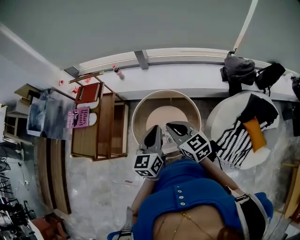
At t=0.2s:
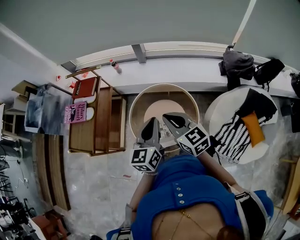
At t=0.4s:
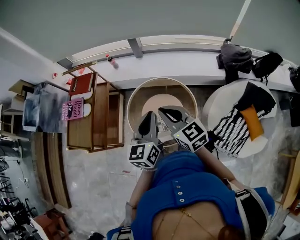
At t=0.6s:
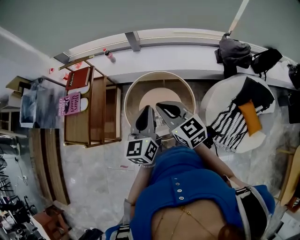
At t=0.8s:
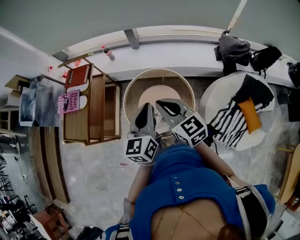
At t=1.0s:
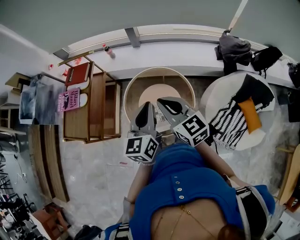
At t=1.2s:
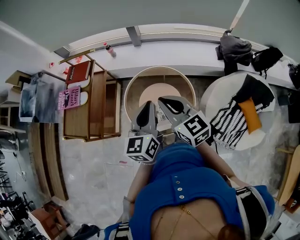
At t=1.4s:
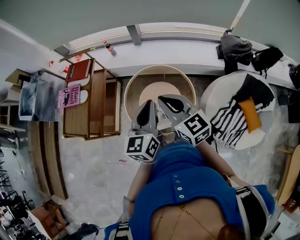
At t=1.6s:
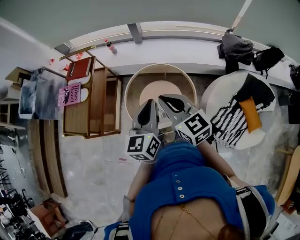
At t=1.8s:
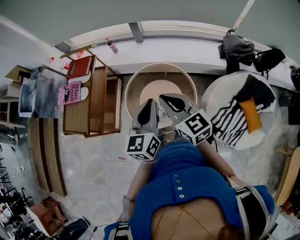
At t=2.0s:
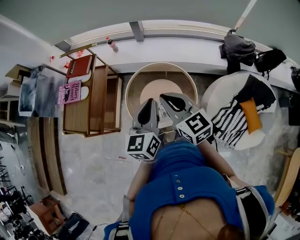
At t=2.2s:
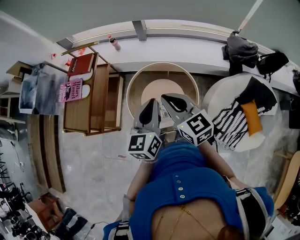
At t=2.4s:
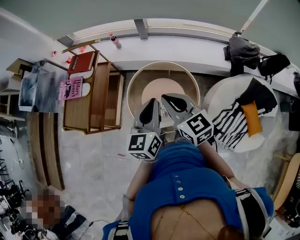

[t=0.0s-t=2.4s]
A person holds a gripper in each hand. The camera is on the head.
t=0.0s to t=2.4s: The grippers stay close to where they were, moving slightly.

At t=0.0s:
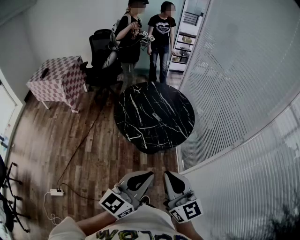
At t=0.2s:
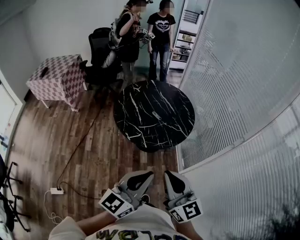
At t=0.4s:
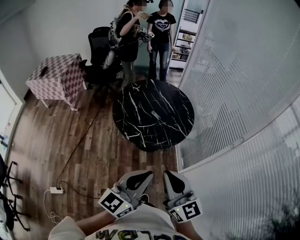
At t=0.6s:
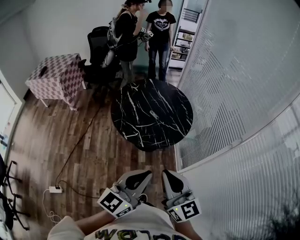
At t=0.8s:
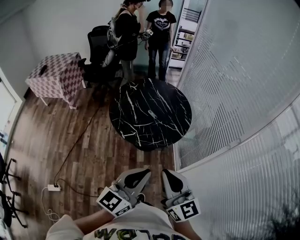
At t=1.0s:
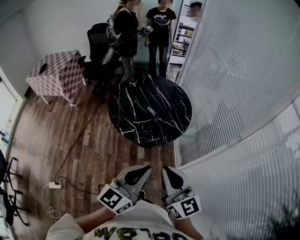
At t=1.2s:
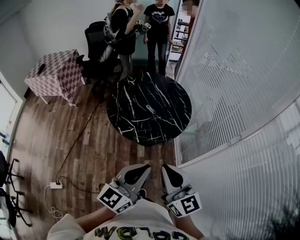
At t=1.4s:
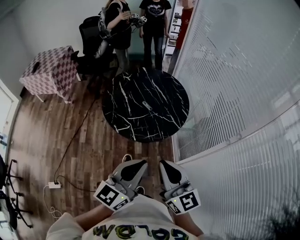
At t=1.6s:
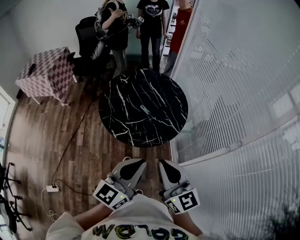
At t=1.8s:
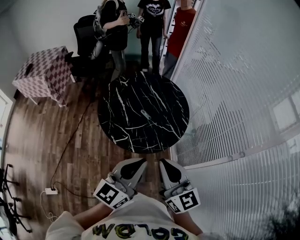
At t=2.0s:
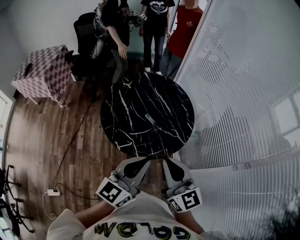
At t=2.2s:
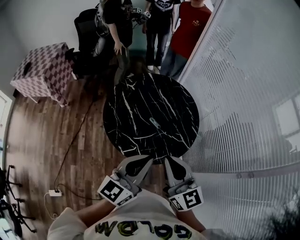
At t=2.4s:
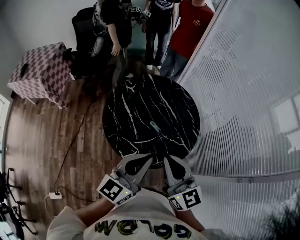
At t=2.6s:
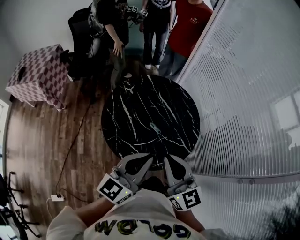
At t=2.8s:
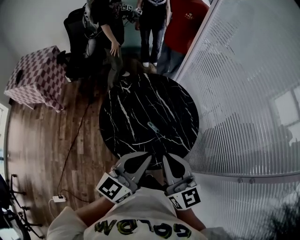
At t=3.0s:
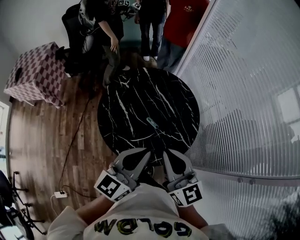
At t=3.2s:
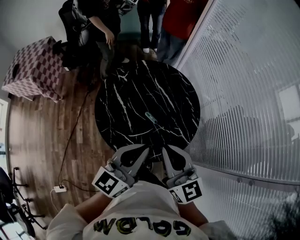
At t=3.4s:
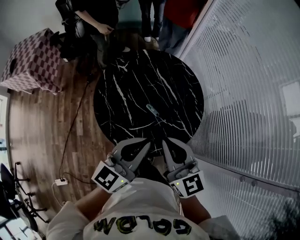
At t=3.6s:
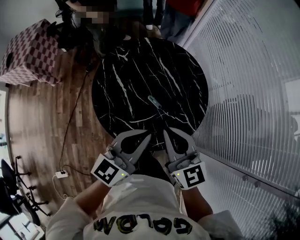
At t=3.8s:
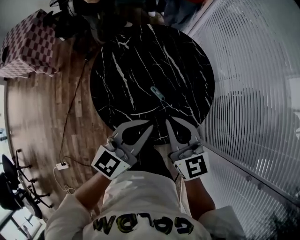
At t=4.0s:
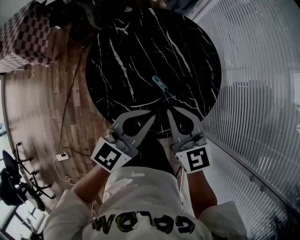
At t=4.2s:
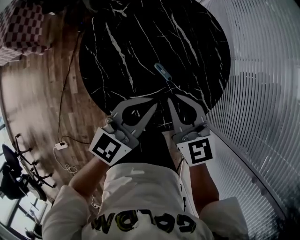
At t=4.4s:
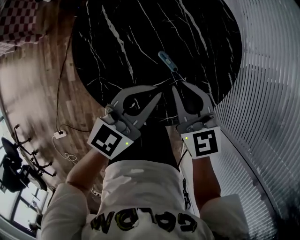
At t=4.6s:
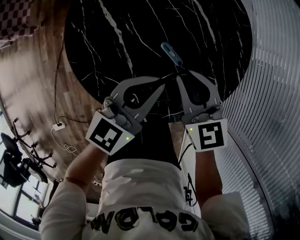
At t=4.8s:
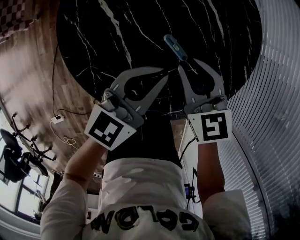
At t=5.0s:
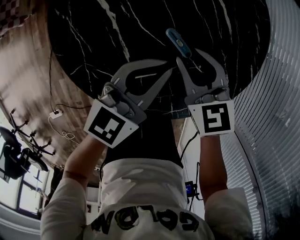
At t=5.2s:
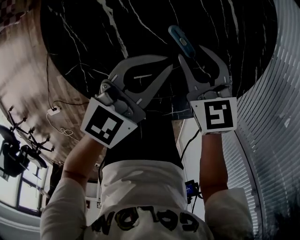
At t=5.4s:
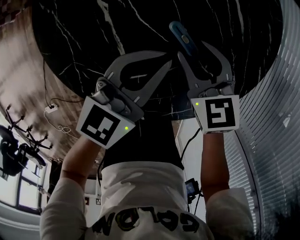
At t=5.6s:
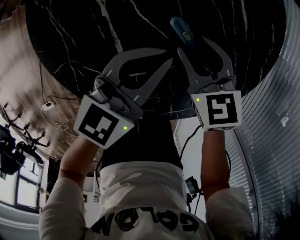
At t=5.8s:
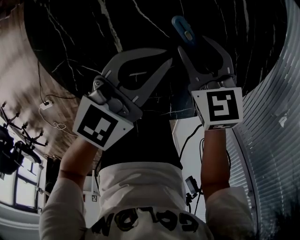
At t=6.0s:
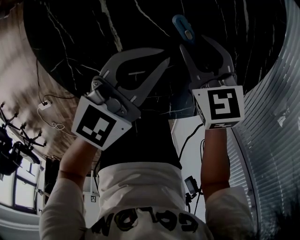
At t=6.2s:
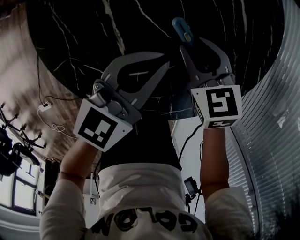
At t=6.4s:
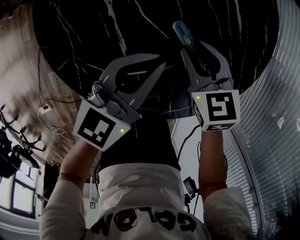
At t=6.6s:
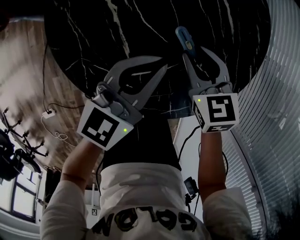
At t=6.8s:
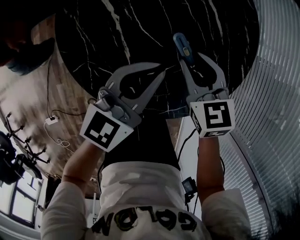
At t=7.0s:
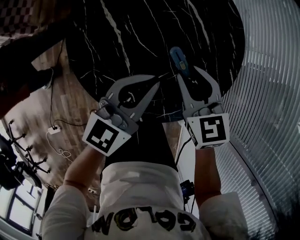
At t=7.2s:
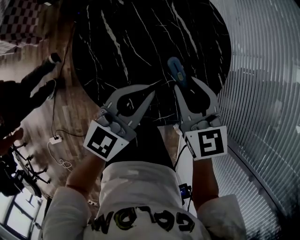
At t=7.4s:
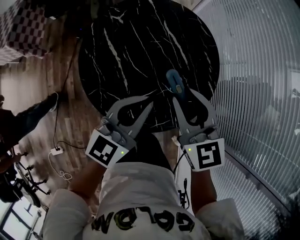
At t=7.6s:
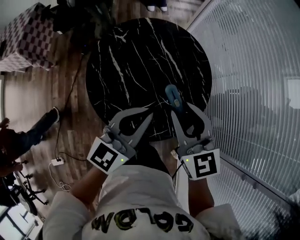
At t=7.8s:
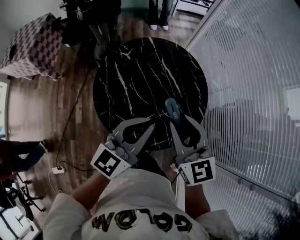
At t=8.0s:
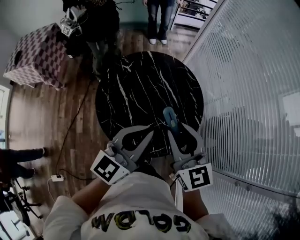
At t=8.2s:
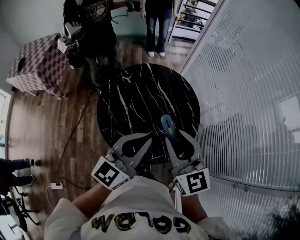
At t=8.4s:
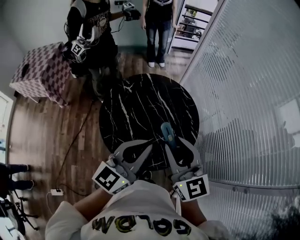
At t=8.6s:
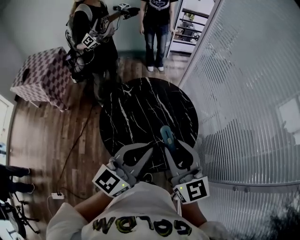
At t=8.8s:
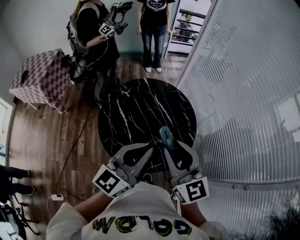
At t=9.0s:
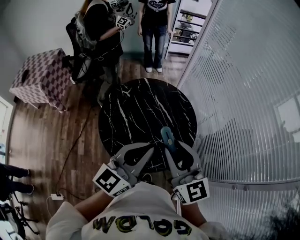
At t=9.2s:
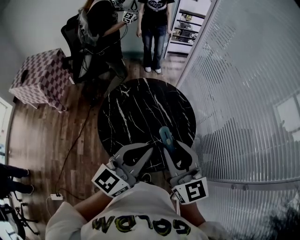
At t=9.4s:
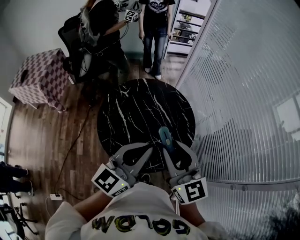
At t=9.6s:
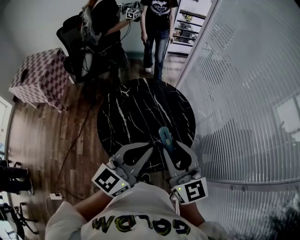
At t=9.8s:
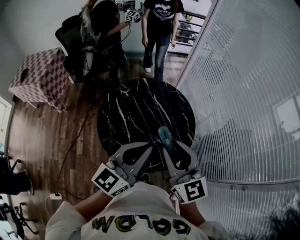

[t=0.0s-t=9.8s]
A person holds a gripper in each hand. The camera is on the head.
t=0.0s to t=1.4s: The two grippers go some 10 cm forward and to the right.
t=1.4s to t=2.8s: Both grippers move forward, about 30 cm.
t=2.8s to t=4.2s: Both grippers move downward and forward, approximately 25 cm. The right gripper turns by some 30 degrees.
t=4.2s to t=5.6s: Both grippers travel together downward, some 20 cm. The right gripper swivels roughly 20 degrees, and opens.
t=5.6s to t=7.0s: The two grippers go about 15 cm upward.
t=7.0s to t=8.4s: The right gripper heads upward, covering roughly 35 cm, and tips its fingers upward by about 30 degrees, while the left gripper heads upward and backward, covering roughly 30 cm.
t=8.4s to t=9.8s: The grippers move only a little.

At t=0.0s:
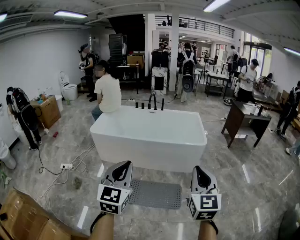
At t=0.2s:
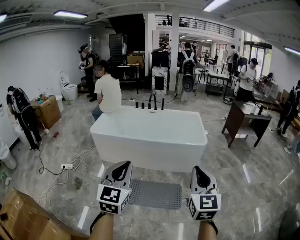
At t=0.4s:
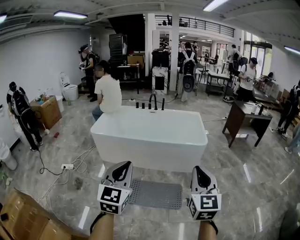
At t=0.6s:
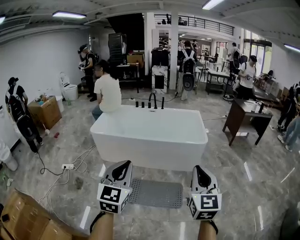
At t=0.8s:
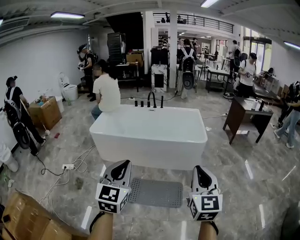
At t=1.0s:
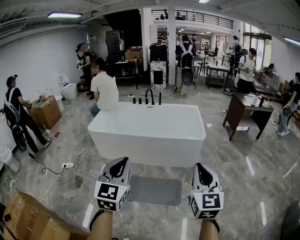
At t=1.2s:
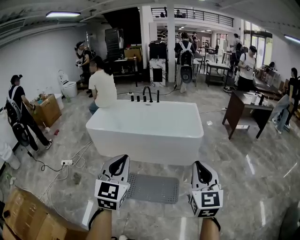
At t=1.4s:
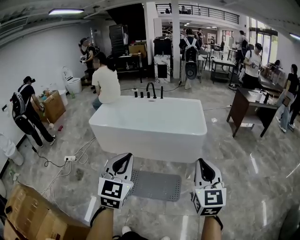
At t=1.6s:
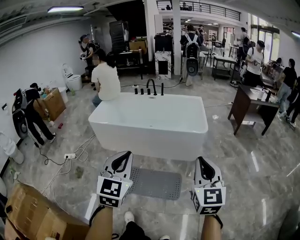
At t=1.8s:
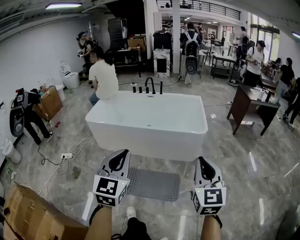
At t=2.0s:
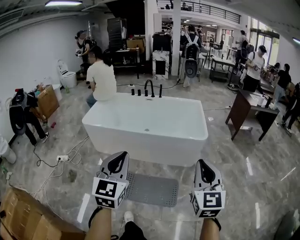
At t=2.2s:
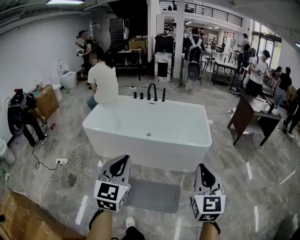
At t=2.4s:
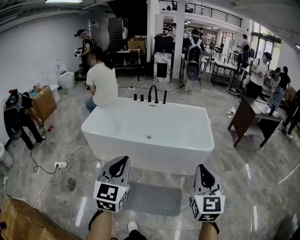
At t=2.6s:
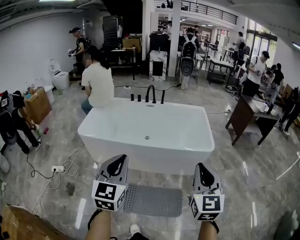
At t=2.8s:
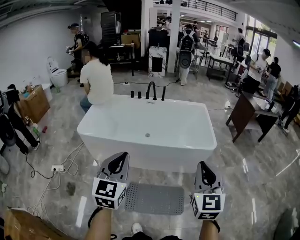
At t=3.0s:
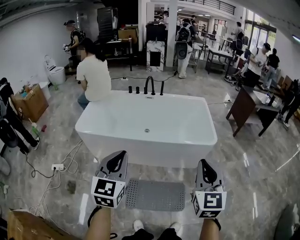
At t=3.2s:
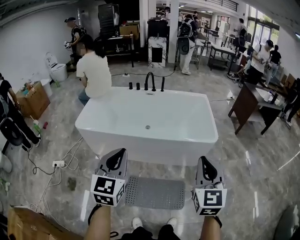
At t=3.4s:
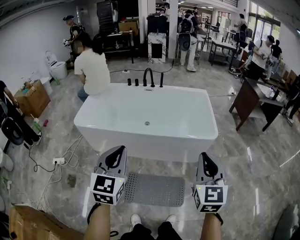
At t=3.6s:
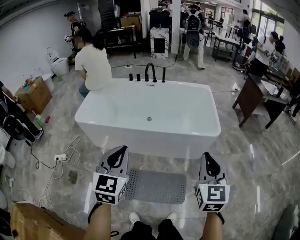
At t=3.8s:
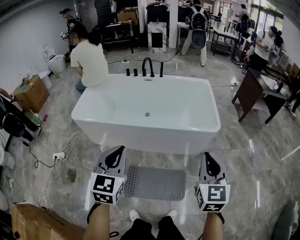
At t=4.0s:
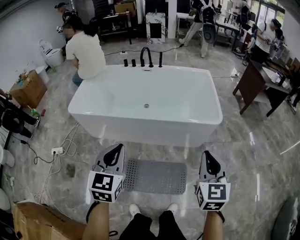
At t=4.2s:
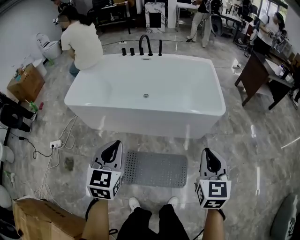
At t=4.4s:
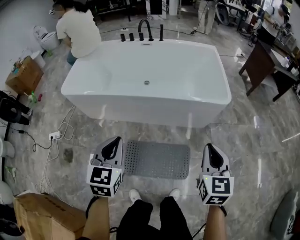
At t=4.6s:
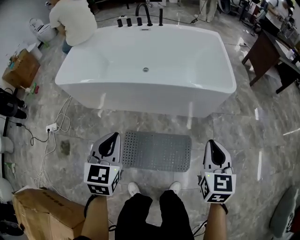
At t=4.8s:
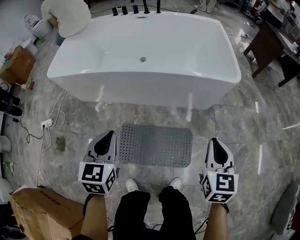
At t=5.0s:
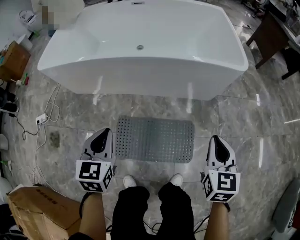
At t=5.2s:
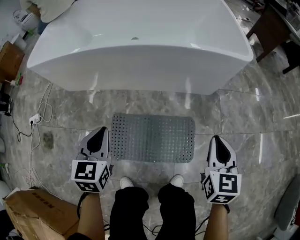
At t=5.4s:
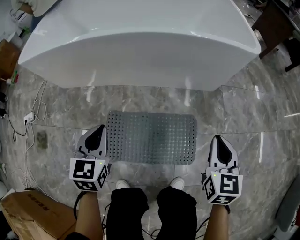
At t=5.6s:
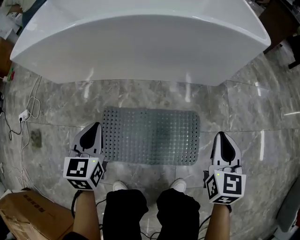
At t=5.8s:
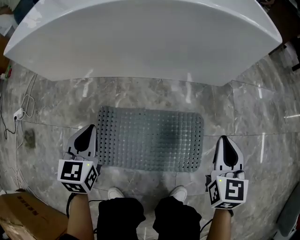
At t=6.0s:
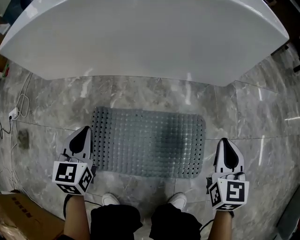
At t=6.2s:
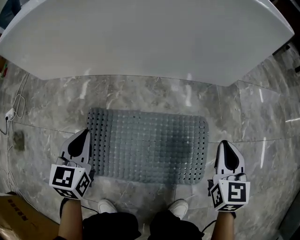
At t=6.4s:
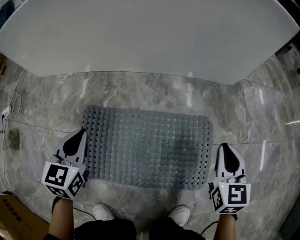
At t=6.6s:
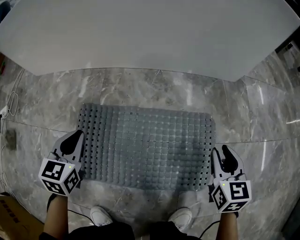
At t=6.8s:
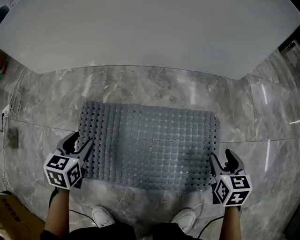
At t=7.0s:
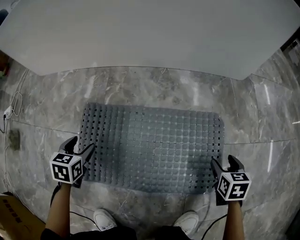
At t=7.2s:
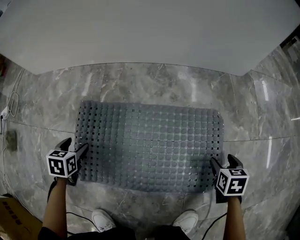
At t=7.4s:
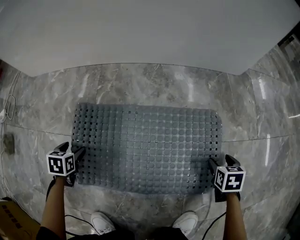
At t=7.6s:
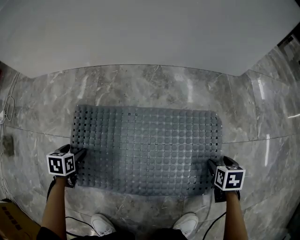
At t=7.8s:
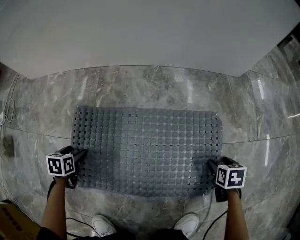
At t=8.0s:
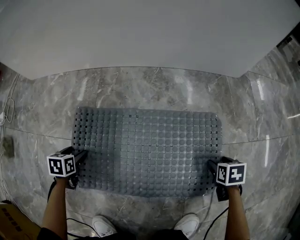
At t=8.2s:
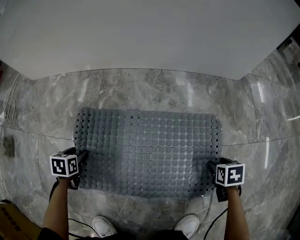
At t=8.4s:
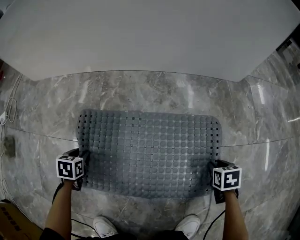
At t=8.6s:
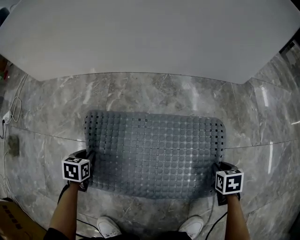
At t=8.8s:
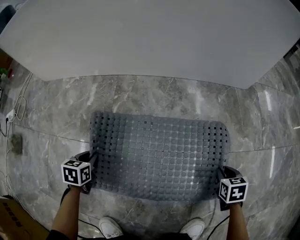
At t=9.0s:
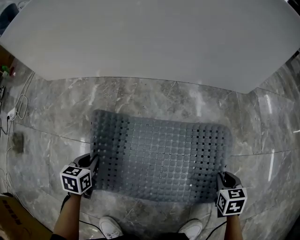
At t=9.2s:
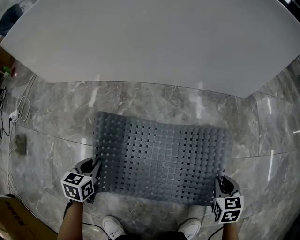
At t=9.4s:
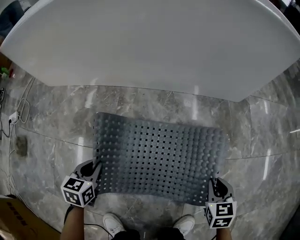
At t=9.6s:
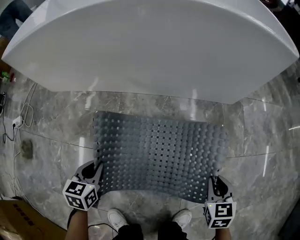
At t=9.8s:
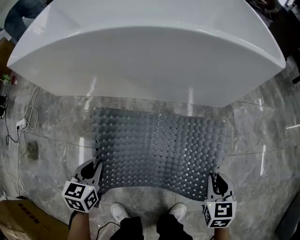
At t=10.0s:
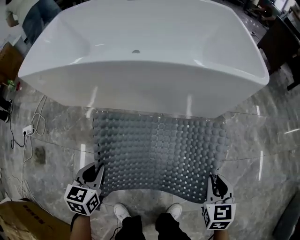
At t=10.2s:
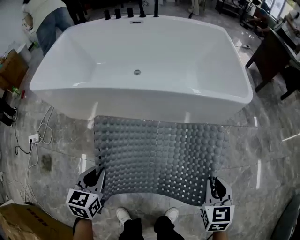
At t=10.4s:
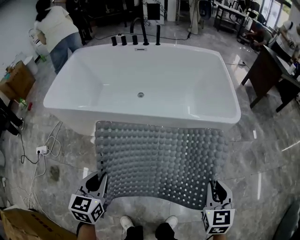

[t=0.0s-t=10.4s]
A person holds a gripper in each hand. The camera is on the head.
t=0.0s to t=1.4s: Both grippers move to the right, approximately 15 cm.
t=1.4s to t=3.0s: The grippers both shift forward and to the left by some 35 cm.
t=3.0s to t=4.4s: Both grippers travel together downward, roughly 20 cm.
t=4.4s to t=6.0s: Both grippers move downward, some 50 cm.
t=6.0s to t=7.4s: Both grippers move downward, some 35 cm. The left gripper tips its fingers downward by roughly 40 degrees, and opens. Meanwhile the right gripper points its fingers about 40 degrees further downward, and opens its fingers.
t=7.4s to t=9.0s: The grippers both shift upward by approximately 5 cm. The right gripper closes up. Meanwhile the left gripper closes up.
t=9.0s to t=10.4s: Both grippers move upward, approximately 60 cm. The left gripper rotates about 30 degrees; the right gripper turns by approximately 30 degrees.

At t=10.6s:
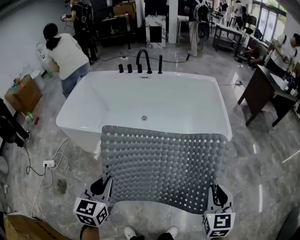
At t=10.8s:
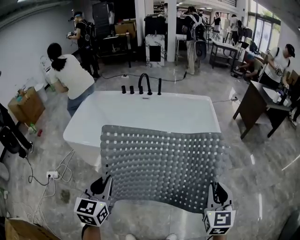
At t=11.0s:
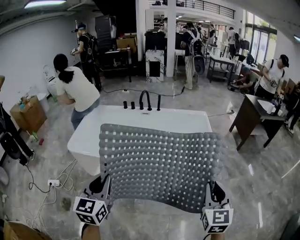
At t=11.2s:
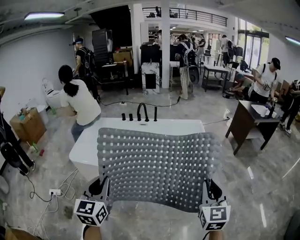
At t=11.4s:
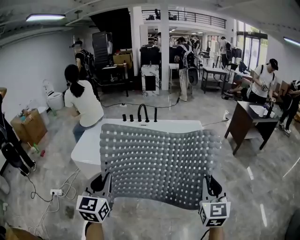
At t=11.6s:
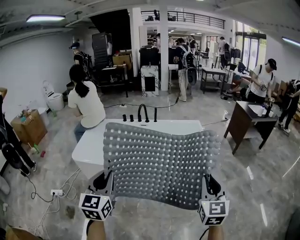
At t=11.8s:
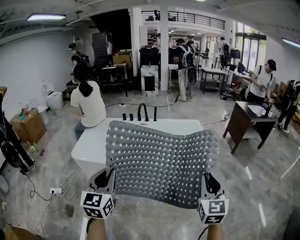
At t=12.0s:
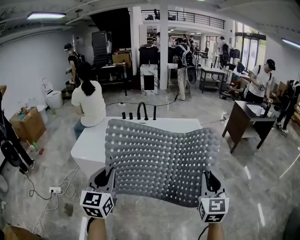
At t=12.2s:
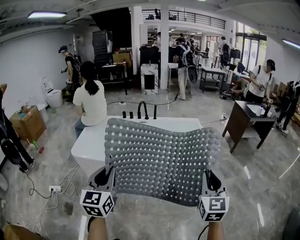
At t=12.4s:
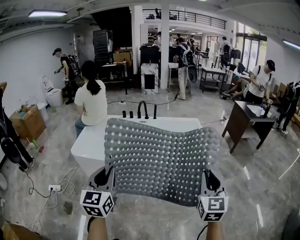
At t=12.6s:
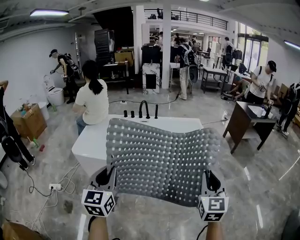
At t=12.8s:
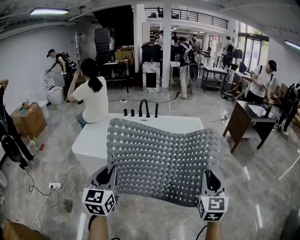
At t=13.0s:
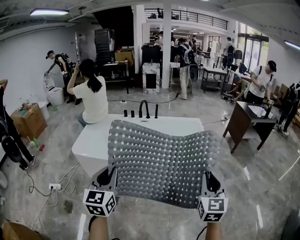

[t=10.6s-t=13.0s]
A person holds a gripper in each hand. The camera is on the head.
t=10.6s to t=11.8s: Both grippers move upward, roughly 25 cm. The left gripper rotates approximately 20 degrees. The right gripper turns by some 20 degrees.
t=11.8s to t=13.0s: The grippers move only a little.
